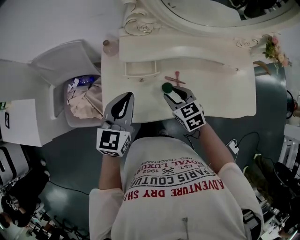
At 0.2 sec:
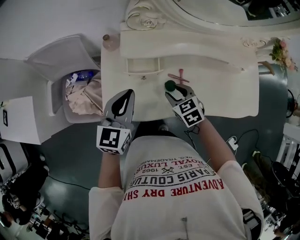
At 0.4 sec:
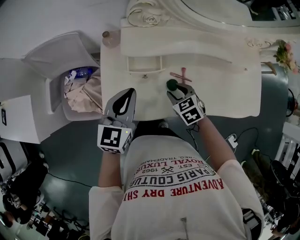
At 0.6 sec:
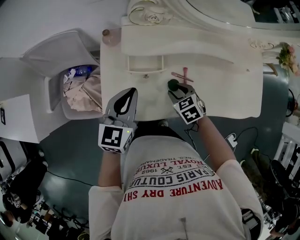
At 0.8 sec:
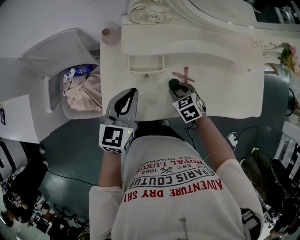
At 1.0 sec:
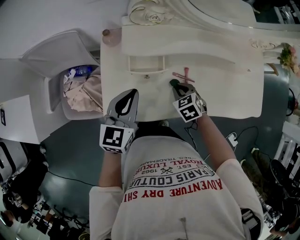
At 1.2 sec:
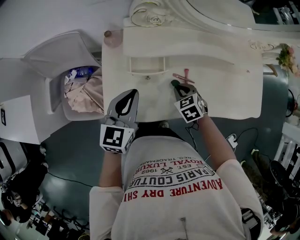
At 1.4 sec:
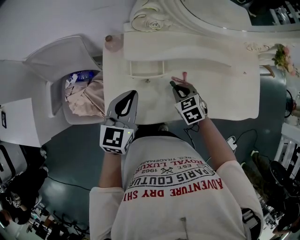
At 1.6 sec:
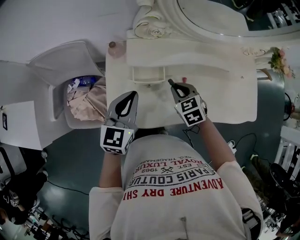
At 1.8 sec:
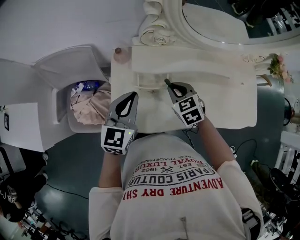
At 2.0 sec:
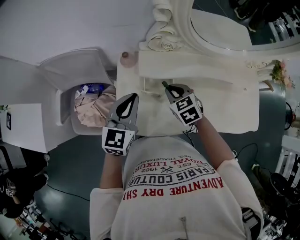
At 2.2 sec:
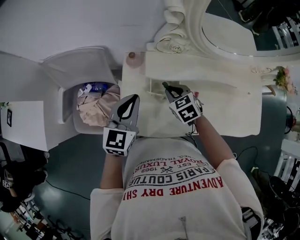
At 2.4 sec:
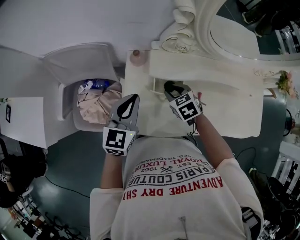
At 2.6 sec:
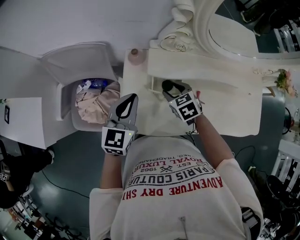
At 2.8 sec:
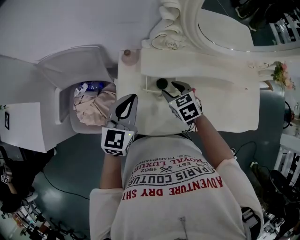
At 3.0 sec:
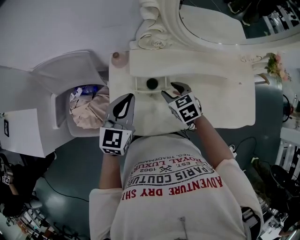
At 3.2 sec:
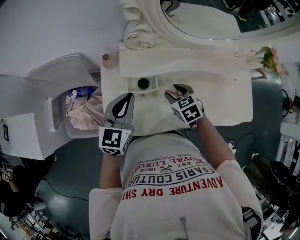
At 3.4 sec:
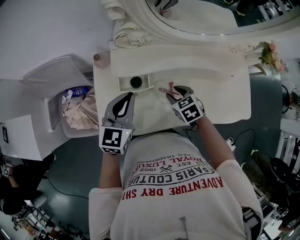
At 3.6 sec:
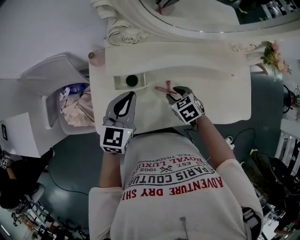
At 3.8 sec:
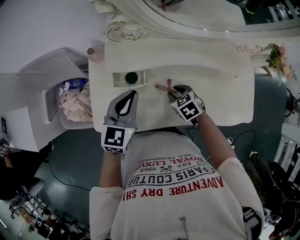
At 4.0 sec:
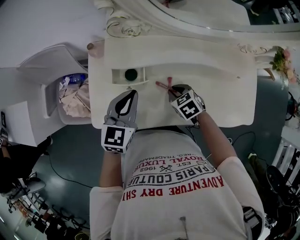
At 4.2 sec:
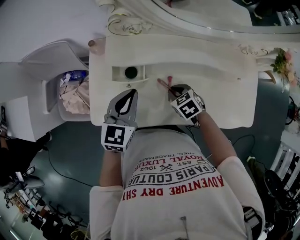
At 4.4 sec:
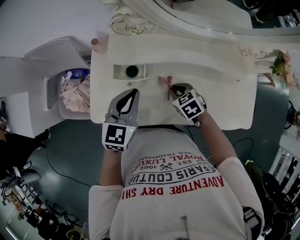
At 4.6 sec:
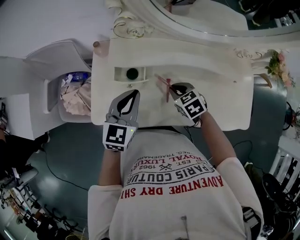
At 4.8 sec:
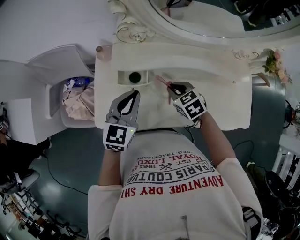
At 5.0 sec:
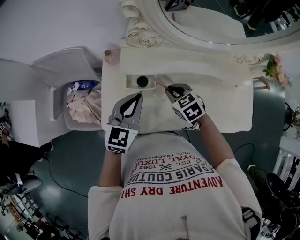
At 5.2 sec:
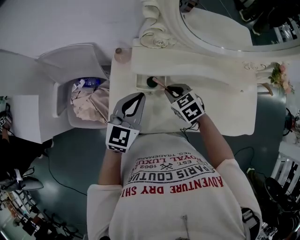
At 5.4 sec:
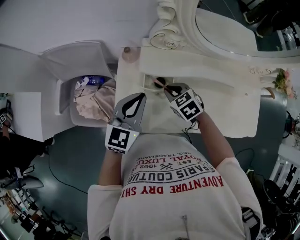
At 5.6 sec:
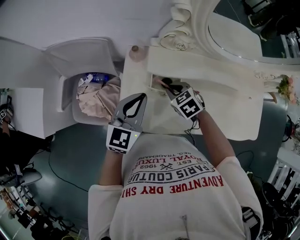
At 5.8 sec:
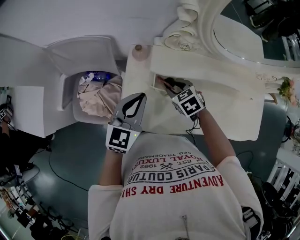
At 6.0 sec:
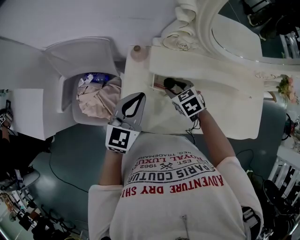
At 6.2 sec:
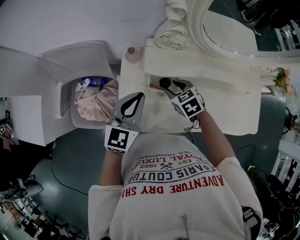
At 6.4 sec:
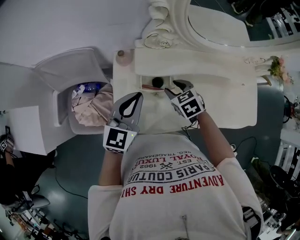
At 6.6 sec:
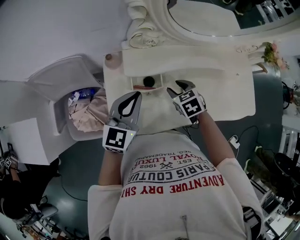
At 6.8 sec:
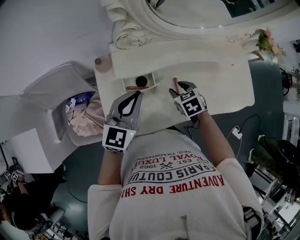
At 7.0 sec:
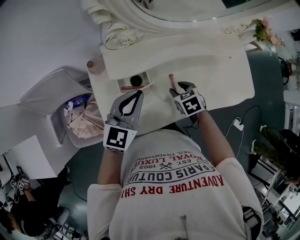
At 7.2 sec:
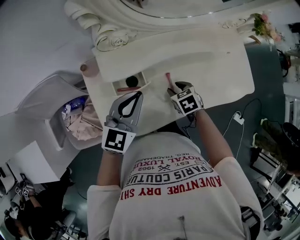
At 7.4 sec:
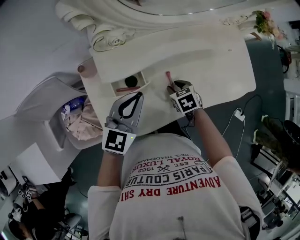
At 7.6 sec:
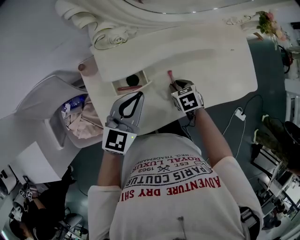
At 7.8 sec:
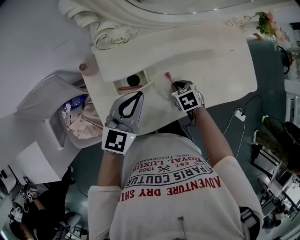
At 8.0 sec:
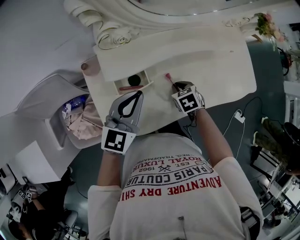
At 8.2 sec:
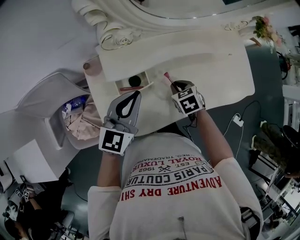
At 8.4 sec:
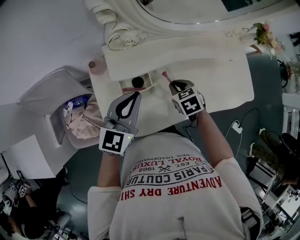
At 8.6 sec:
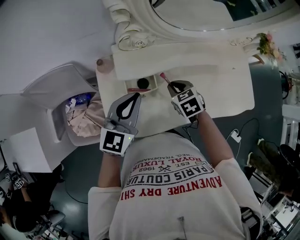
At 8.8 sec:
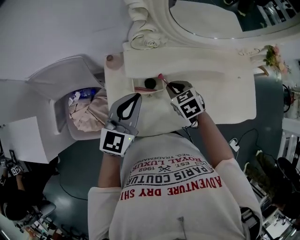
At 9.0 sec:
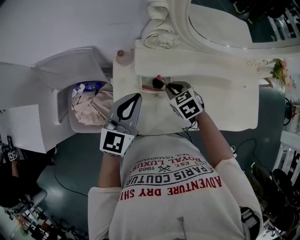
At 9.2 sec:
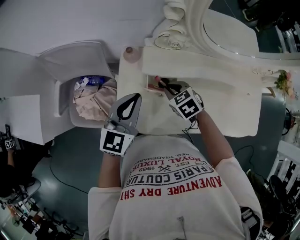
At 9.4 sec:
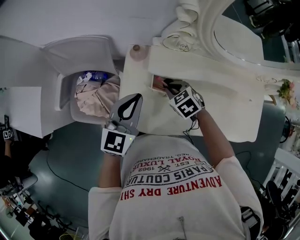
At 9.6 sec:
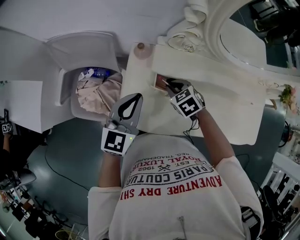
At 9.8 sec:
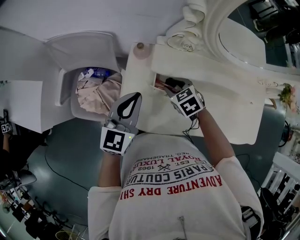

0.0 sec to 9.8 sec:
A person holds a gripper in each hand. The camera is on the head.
0.0 sec to 1.4 sec: The right gripper moves downward, some 5 cm, and closes up, while the left gripper changes place by approximately 5 cm.
1.4 sec to 2.8 sec: The right gripper shifts approximately 15 cm to the left, forward and upward, and opens up. The left gripper heads to the left, covering roughly 5 cm.
2.8 sec to 4.2 sec: The right gripper shifts some 20 cm to the right, downward and backward, and closes up. Meanwhile the left gripper shifts about 15 cm to the right.
4.2 sec to 5.6 sec: The left gripper travels to the left and upward by roughly 15 cm. The right gripper is displaced to the left, forward and upward by about 20 cm.
5.6 sec to 7.0 sec: The right gripper shifts by approximately 20 cm, swivels roughly 30 degrees, and opens its fingers. Meanwhile the left gripper shifts by some 10 cm, and changes its angle by approximately 20 degrees.
7.0 sec to 8.4 sec: The right gripper closes up.
8.4 sec to 9.8 sec: The left gripper shifts by some 15 cm, and rotates roughly 20 degrees, while the right gripper ends up approximately 15 cm from where it was, changes its angle by roughly 30 degrees, and opens its fingers.

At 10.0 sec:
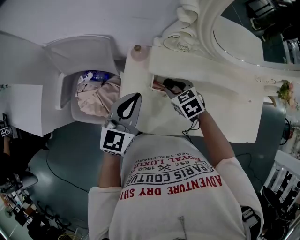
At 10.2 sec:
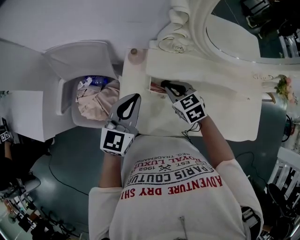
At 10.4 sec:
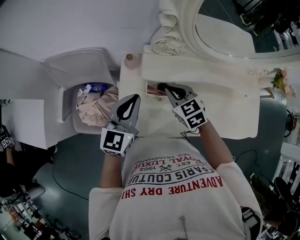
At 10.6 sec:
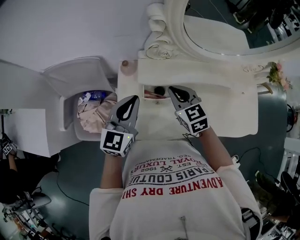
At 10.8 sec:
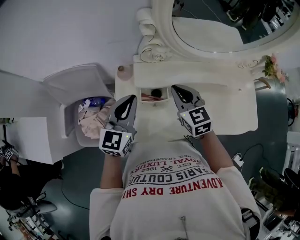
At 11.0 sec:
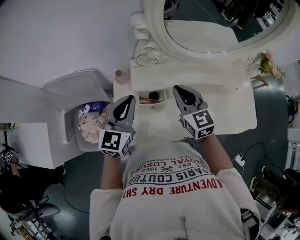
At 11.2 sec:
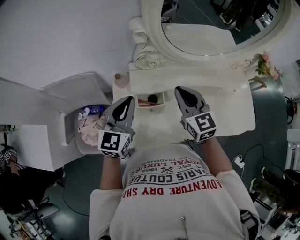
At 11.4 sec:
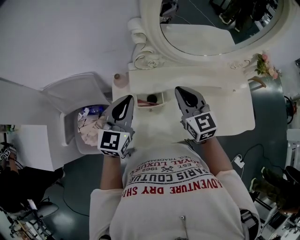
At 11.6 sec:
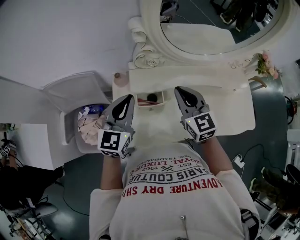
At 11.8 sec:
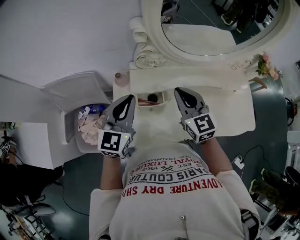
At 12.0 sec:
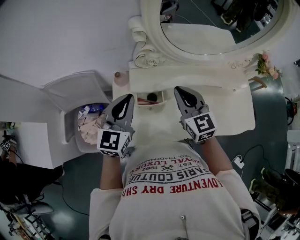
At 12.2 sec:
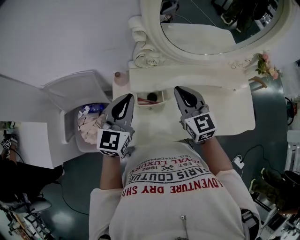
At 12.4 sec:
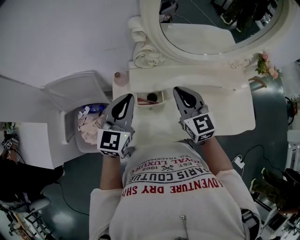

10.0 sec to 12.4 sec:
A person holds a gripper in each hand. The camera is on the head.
10.0 sec to 11.2 sec: The right gripper goes about 20 cm upward and to the right, angles its fingers upward, by roughly 40 degrees, and closes its fingers. Meanwhile the left gripper heads upward and to the right, covering roughly 10 cm.
11.2 sec to 12.4 sec: There are only small adjustments of the grippers.

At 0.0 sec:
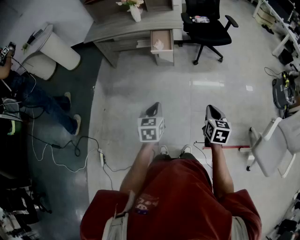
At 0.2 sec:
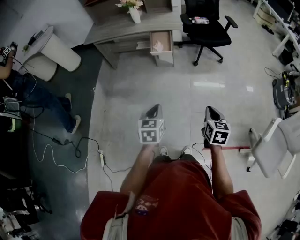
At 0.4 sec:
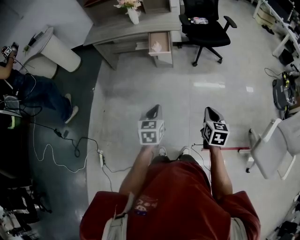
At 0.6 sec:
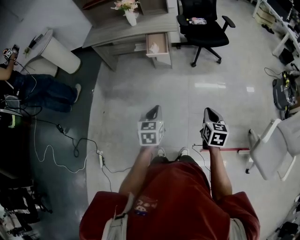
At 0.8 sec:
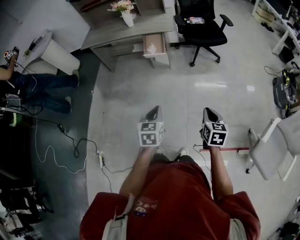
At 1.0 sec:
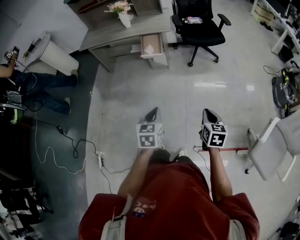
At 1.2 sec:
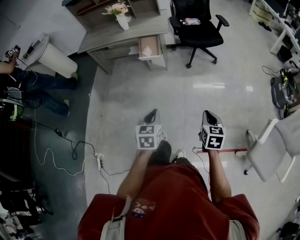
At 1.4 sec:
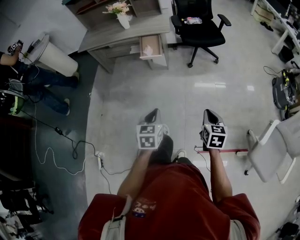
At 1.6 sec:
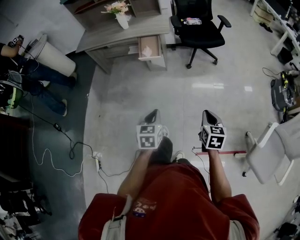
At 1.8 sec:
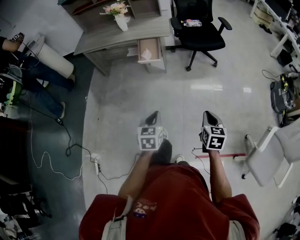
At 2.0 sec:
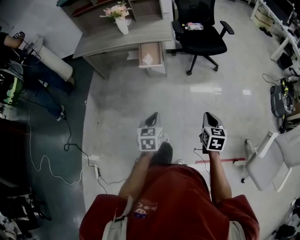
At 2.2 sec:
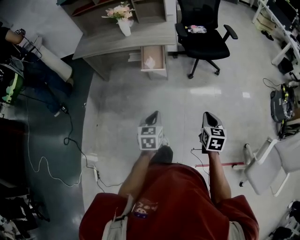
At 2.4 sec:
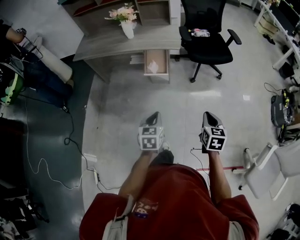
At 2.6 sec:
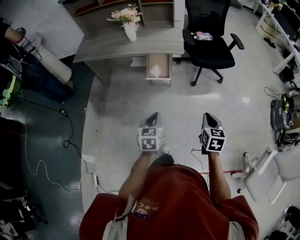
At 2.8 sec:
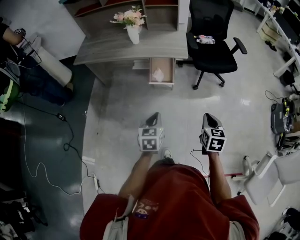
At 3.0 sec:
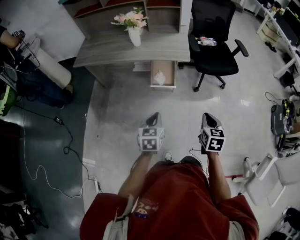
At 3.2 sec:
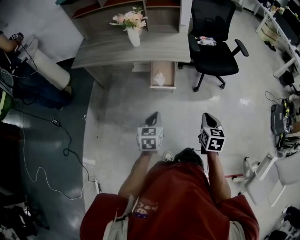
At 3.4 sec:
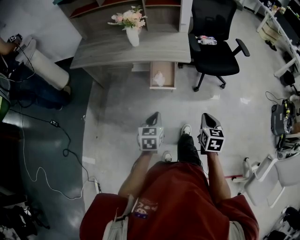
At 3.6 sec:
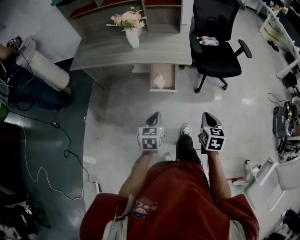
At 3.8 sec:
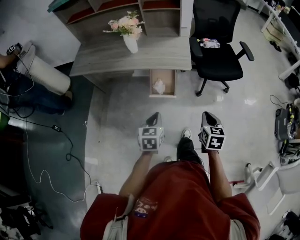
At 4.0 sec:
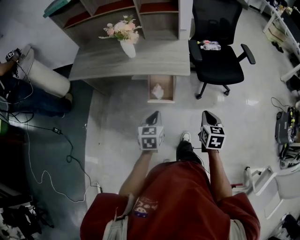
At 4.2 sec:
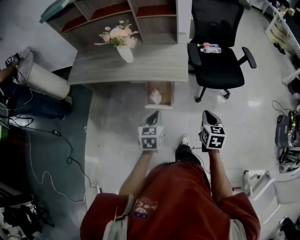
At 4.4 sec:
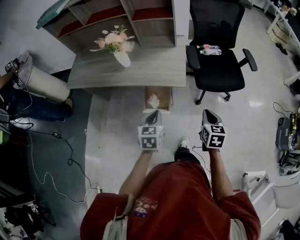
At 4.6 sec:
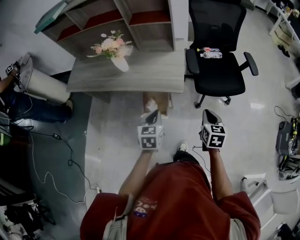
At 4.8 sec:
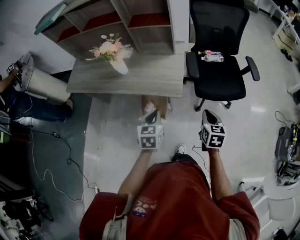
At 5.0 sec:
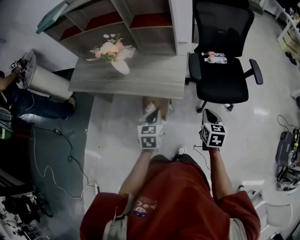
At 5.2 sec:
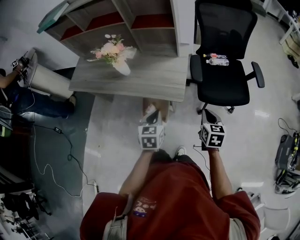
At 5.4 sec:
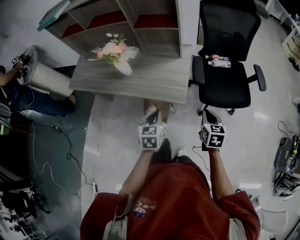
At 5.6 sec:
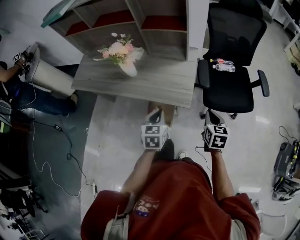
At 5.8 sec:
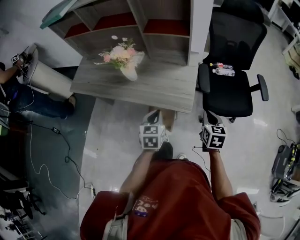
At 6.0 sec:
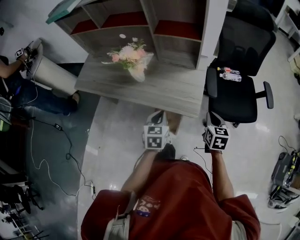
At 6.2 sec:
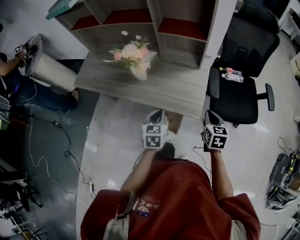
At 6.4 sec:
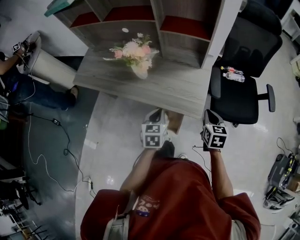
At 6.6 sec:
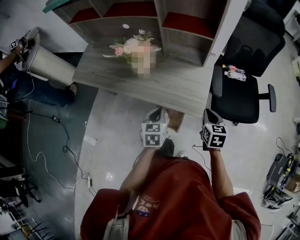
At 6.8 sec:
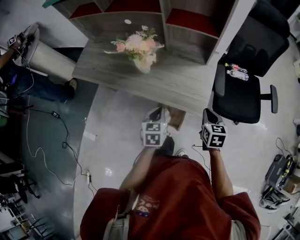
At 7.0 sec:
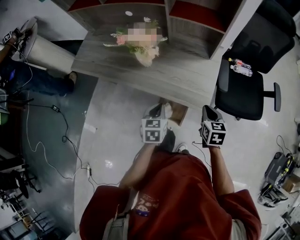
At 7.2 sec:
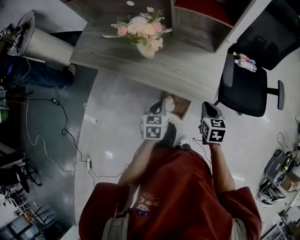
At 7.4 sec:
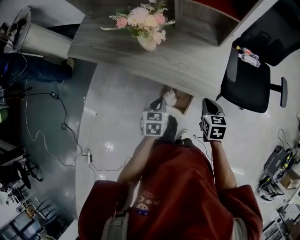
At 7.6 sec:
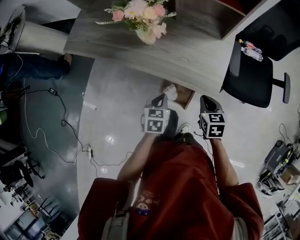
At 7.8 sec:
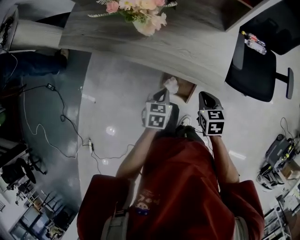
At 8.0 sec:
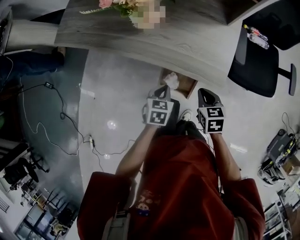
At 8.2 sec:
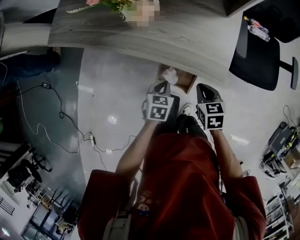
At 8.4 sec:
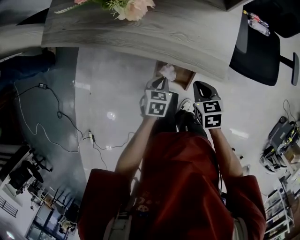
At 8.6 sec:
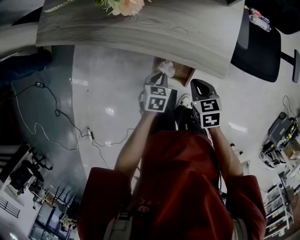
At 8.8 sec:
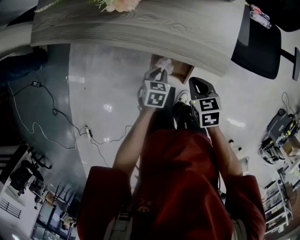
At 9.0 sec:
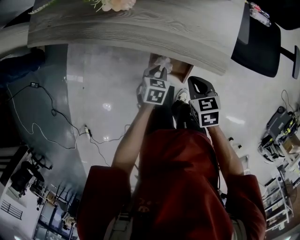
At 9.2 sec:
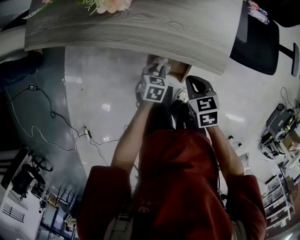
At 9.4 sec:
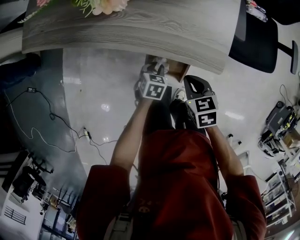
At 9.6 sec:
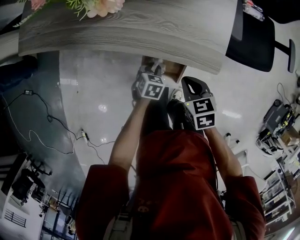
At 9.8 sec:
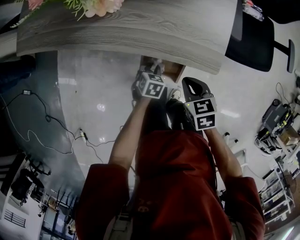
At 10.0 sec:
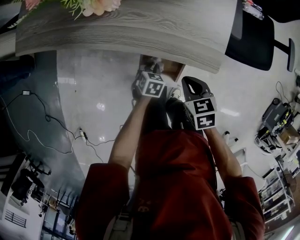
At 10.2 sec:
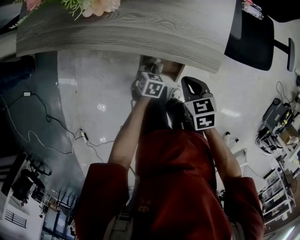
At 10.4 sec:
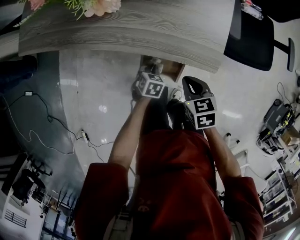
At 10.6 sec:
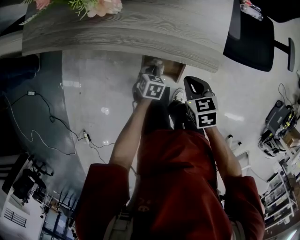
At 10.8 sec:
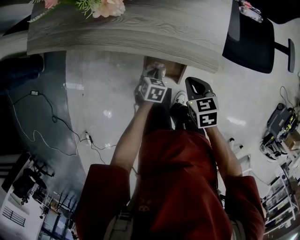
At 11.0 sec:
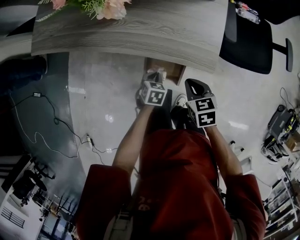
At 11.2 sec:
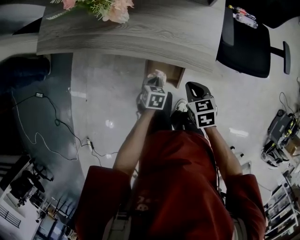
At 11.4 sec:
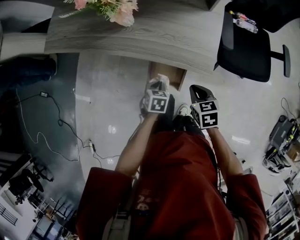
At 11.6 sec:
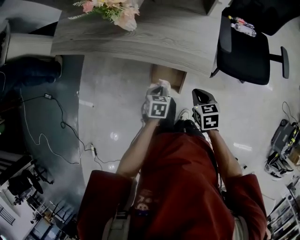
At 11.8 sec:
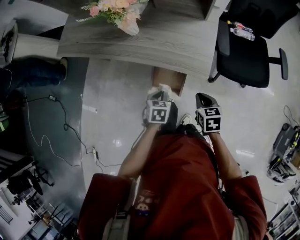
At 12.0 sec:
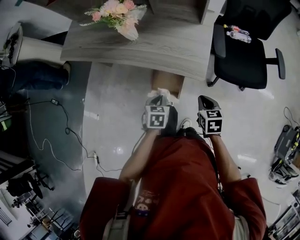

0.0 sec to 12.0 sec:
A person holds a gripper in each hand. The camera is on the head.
0.0 sec to 1.6 sec: The two grippers go roughly 10 cm to the right.
1.6 sec to 3.0 sec: The grippers both shift forward and to the left by approximately 35 cm.
3.0 sec to 4.4 sec: Both grippers move forward, about 30 cm.
4.4 sec to 6.0 sec: The grippers both shift forward by about 20 cm.
6.0 sec to 7.6 sec: The right gripper is displaced to the left and downward by approximately 15 cm, and turns by some 20 degrees, while the left gripper heads downward and to the left, covering roughly 15 cm.
7.6 sec to 9.0 sec: The right gripper moves downward and to the left, some 10 cm. The left gripper travels downward by some 15 cm.
9.0 sec to 10.4 sec: The left gripper is displaced downward by approximately 5 cm.
10.4 sec to 12.0 sec: The right gripper shifts roughly 15 cm to the right, backward and upward. The left gripper travels upward and backward by approximately 20 cm.
